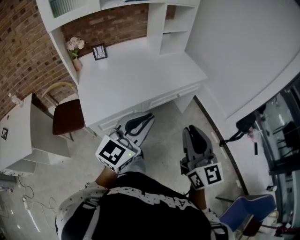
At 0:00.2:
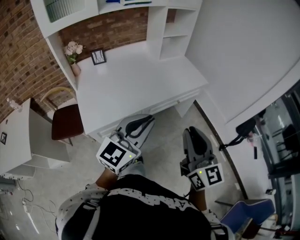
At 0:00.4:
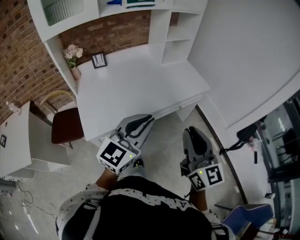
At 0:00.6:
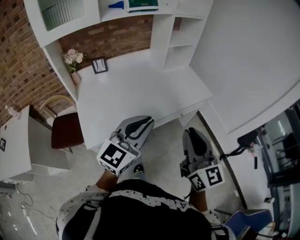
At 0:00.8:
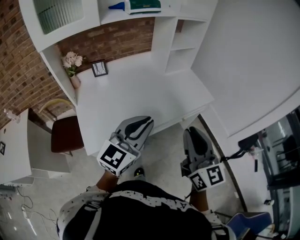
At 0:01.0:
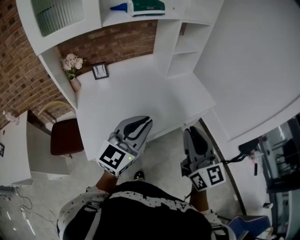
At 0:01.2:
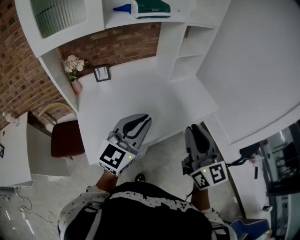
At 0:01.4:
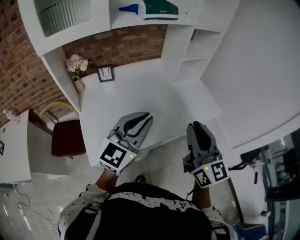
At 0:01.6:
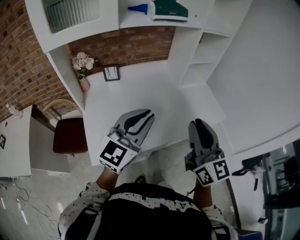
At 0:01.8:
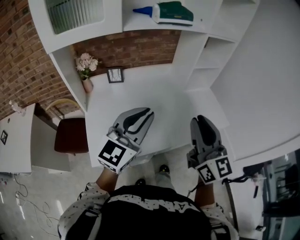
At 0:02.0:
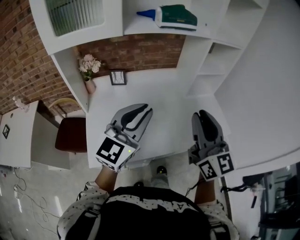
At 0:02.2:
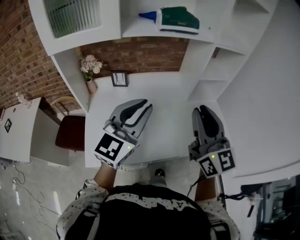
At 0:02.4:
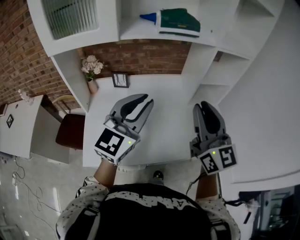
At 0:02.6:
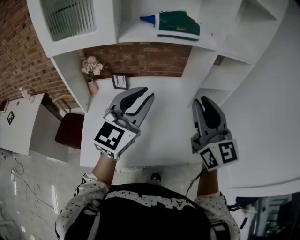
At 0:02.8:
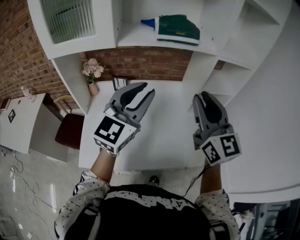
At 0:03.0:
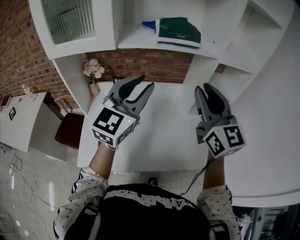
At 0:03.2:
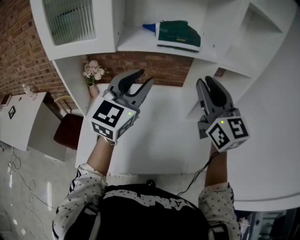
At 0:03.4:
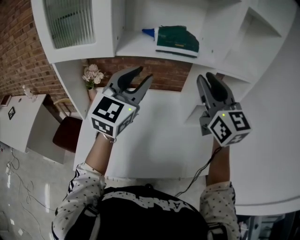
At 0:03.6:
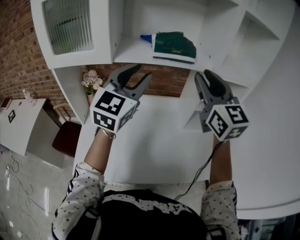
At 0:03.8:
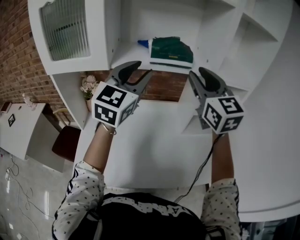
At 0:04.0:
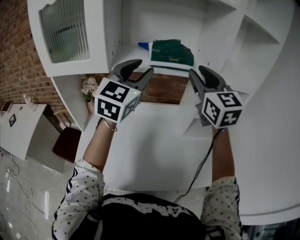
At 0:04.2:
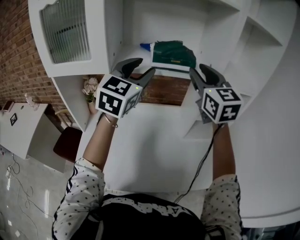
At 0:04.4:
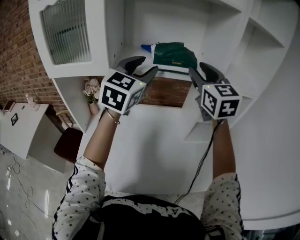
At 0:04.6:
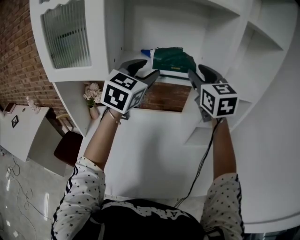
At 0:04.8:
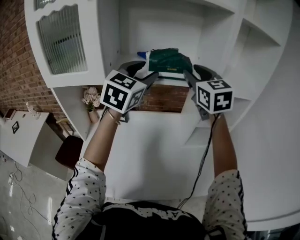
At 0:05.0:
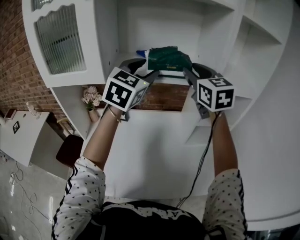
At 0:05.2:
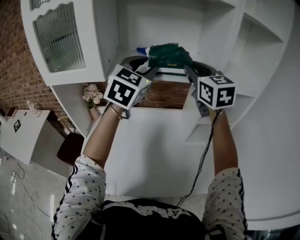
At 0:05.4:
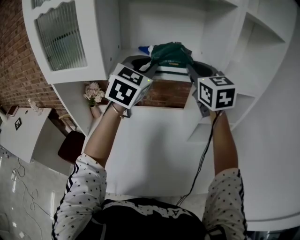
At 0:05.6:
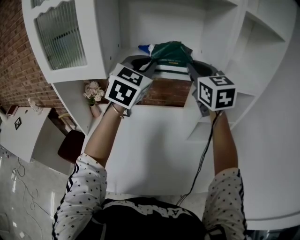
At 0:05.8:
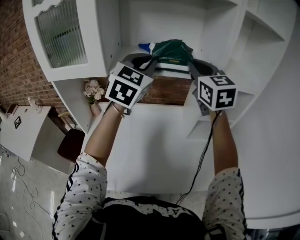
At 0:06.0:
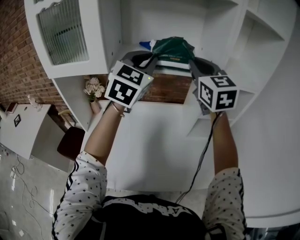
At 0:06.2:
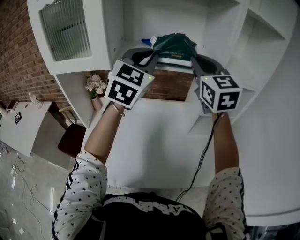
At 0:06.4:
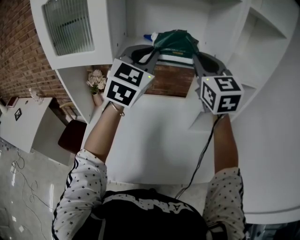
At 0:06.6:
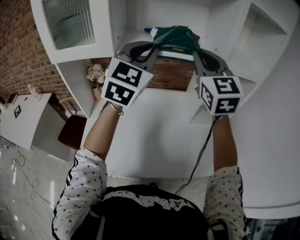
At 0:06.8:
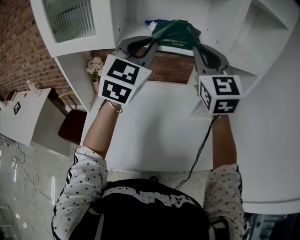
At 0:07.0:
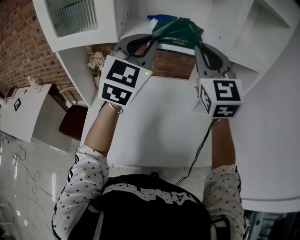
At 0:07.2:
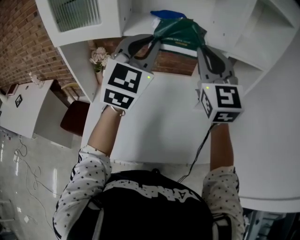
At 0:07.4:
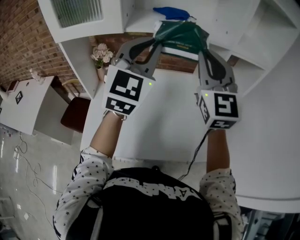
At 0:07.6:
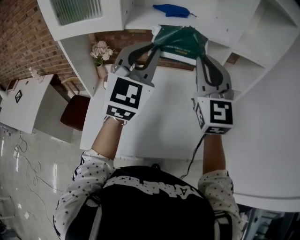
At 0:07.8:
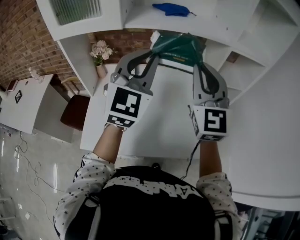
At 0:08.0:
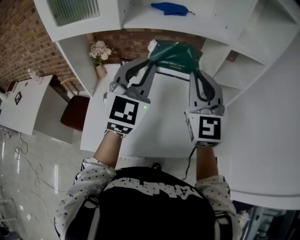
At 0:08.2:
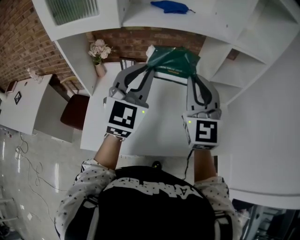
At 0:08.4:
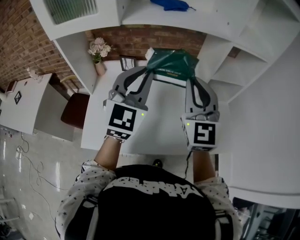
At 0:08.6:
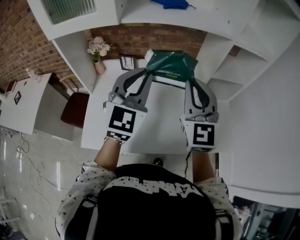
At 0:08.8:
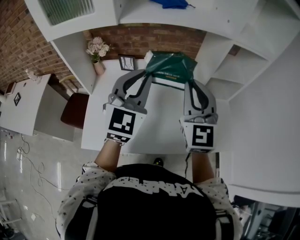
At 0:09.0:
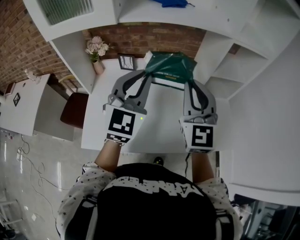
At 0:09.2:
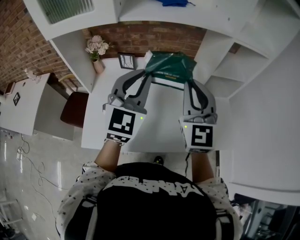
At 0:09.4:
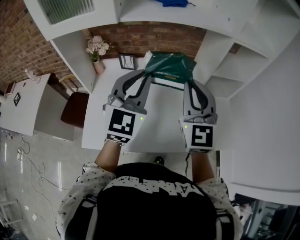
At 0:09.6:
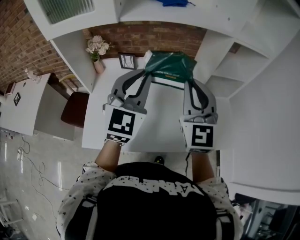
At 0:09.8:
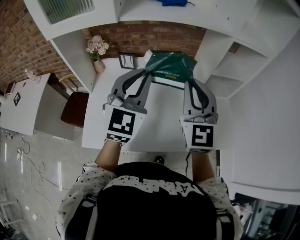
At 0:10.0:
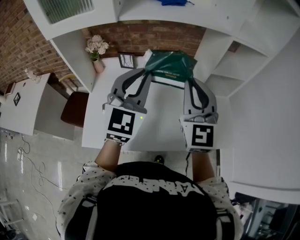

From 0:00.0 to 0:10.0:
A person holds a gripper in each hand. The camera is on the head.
From 0:00.0 to 0:01.4: The grippers both shift forward and to the left by some 25 cm.
From 0:01.4 to 0:02.8: The grippers both shift forward and upward by some 20 cm. The right gripper swivels about 20 degrees. Meanwhile the left gripper changes its angle by about 20 degrees.
From 0:02.8 to 0:04.2: Both grippers move forward and upward, approximately 20 cm. The left gripper opens up.
From 0:04.2 to 0:05.8: The left gripper closes, while the right gripper closes.
From 0:05.8 to 0:07.2: The two grippers go roughly 10 cm backward.
From 0:07.2 to 0:08.6: The two grippers go roughly 15 cm downward and backward.
From 0:08.6 to 0:10.0: Both grippers stay about where they are.

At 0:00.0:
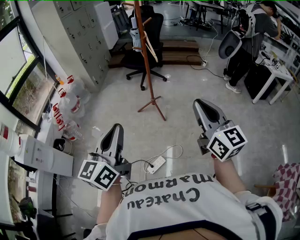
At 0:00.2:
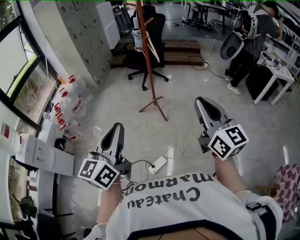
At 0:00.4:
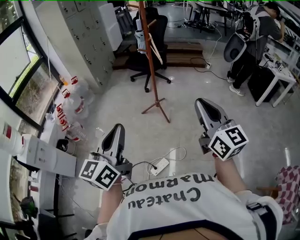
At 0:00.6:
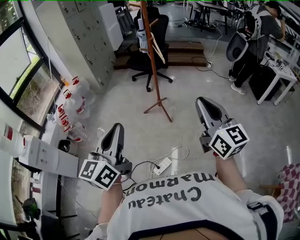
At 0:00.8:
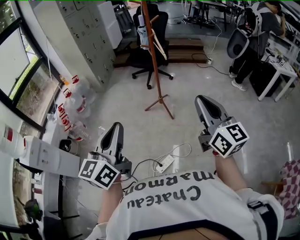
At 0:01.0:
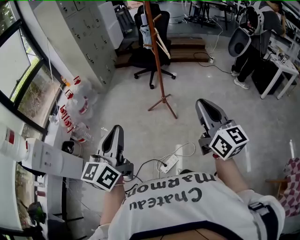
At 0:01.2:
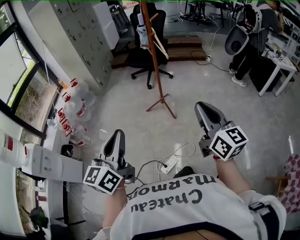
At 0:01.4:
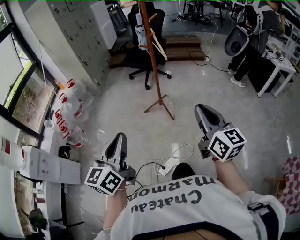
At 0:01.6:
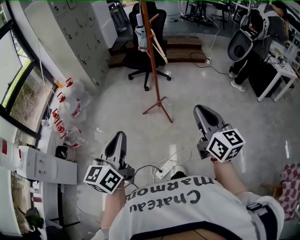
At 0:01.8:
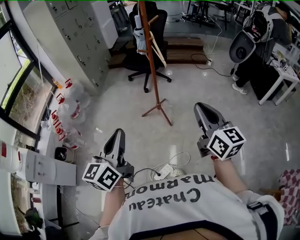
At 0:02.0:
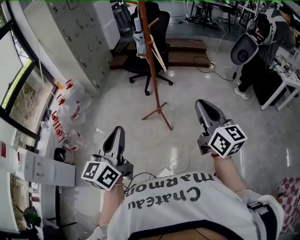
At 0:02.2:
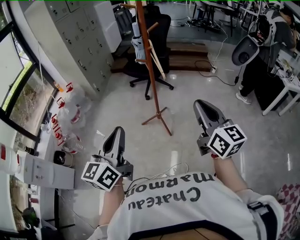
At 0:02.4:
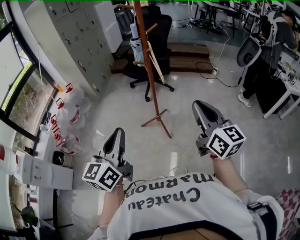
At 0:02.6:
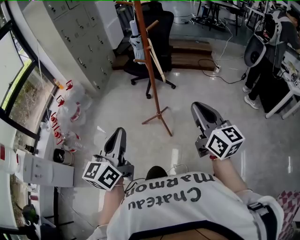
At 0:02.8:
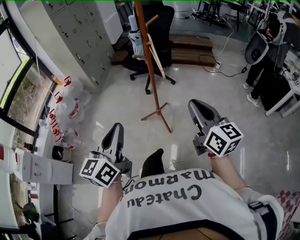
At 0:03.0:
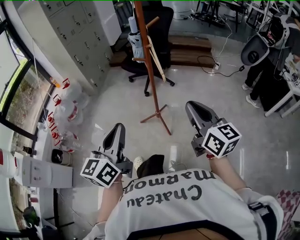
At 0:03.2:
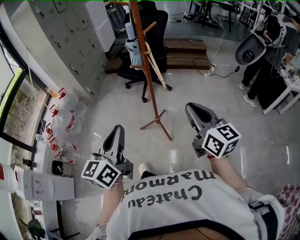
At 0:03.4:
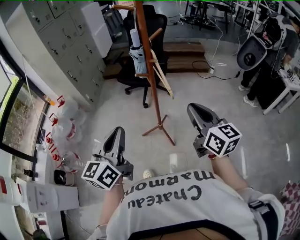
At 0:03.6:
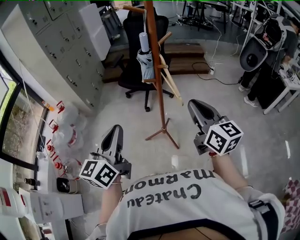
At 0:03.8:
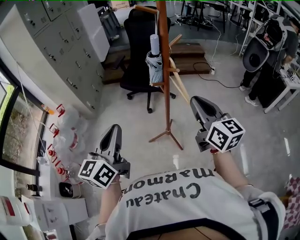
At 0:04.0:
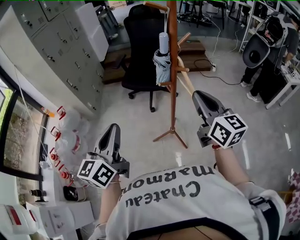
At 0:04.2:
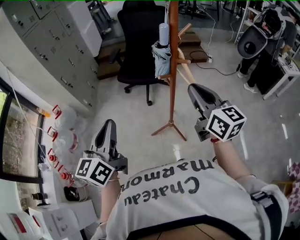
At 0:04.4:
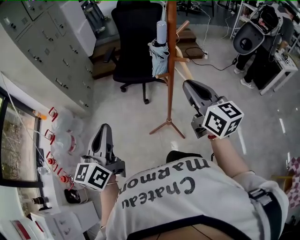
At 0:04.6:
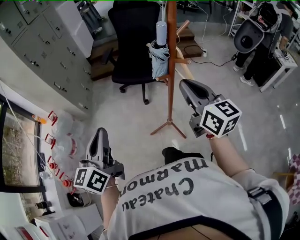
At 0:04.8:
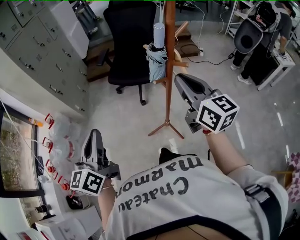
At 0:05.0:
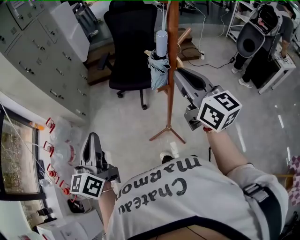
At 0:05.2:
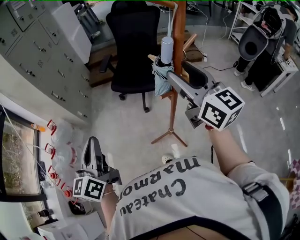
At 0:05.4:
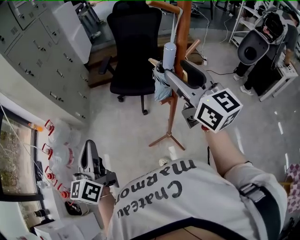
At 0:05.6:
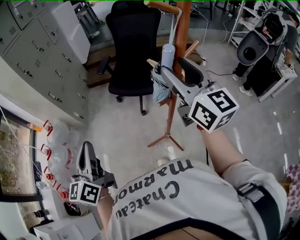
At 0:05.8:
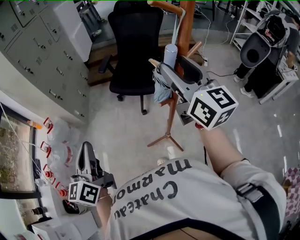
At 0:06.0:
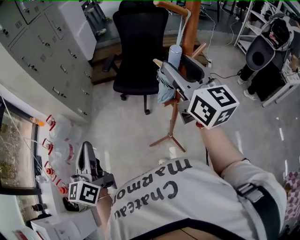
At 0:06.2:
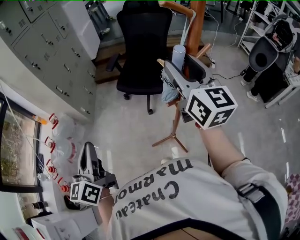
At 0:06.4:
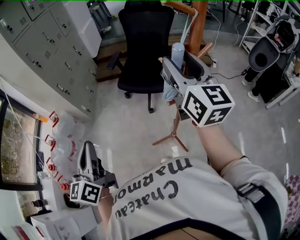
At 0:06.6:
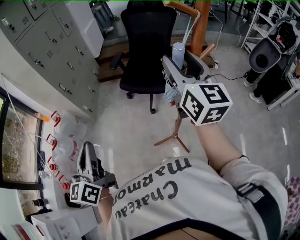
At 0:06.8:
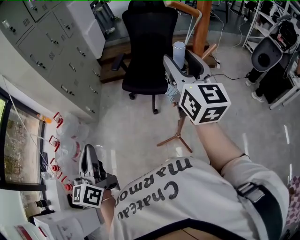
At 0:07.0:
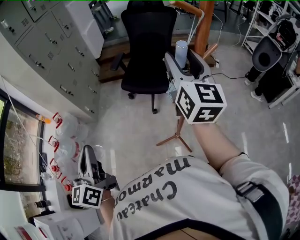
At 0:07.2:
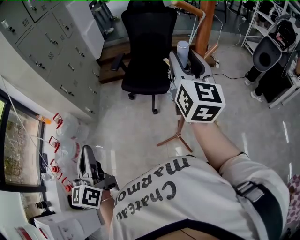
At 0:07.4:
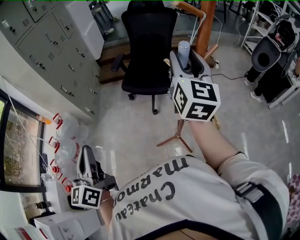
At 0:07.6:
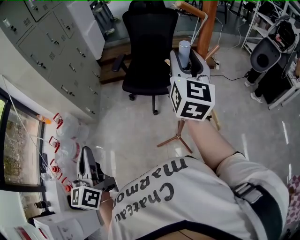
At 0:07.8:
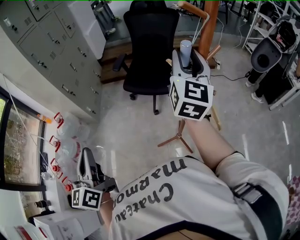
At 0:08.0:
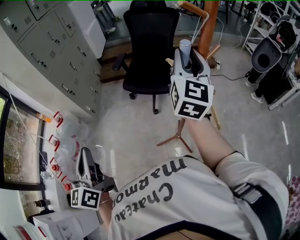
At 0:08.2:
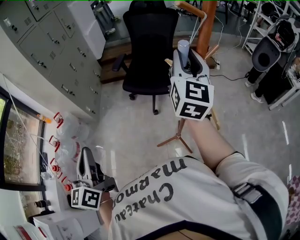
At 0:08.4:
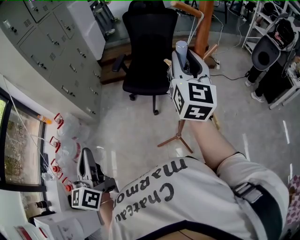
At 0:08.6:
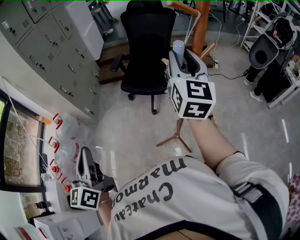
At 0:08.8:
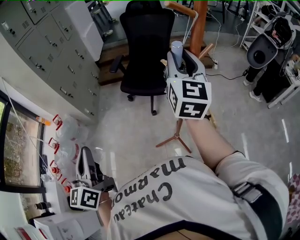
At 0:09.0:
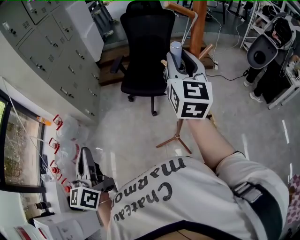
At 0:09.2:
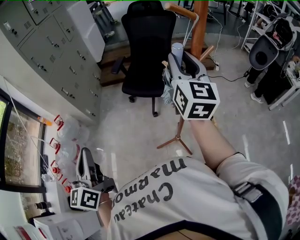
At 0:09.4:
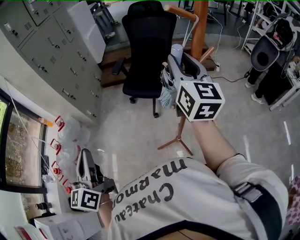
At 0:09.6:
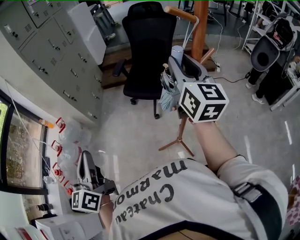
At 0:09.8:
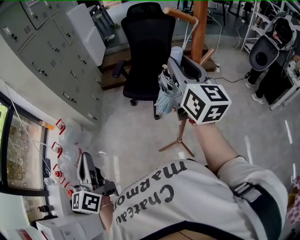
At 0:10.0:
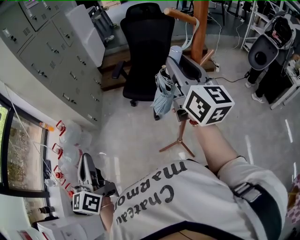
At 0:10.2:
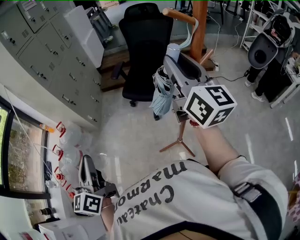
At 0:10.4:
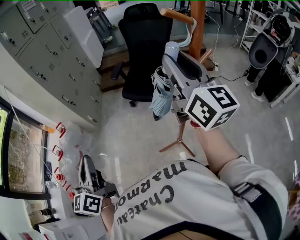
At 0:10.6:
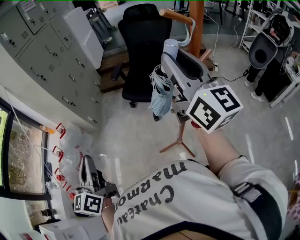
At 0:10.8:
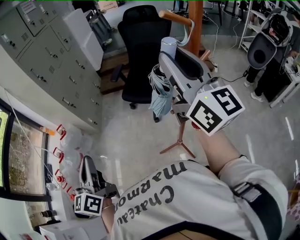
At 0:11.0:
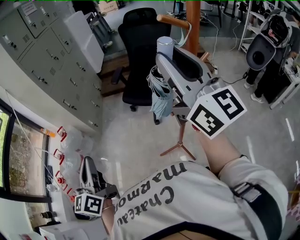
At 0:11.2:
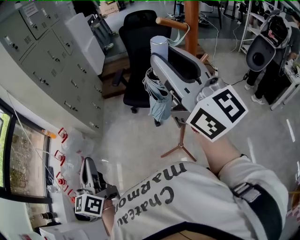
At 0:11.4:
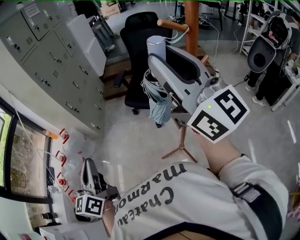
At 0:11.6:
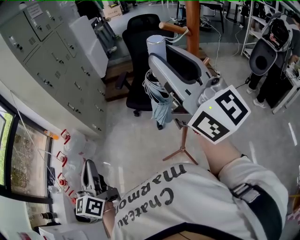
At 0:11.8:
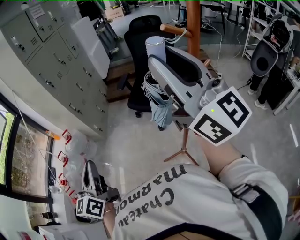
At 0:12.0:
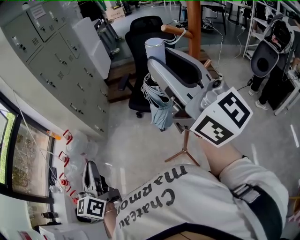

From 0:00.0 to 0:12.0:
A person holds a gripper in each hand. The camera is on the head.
From 0:00.0 to 0:01.6: The left gripper goes roughly 15 cm forward, to the left and downward, while the right gripper goes about 15 cm forward, downward and to the left.
From 0:01.6 to 0:03.0: The grippers both shift forward by roughly 20 cm.
From 0:03.0 to 0:04.4: The left gripper heads to the left and forward, covering roughly 35 cm. Meanwhile the right gripper heads forward and to the left, covering some 30 cm.
From 0:04.4 to 0:06.0: The right gripper travels forward and upward by approximately 20 cm, and opens its fingers. The left gripper heads forward and to the left, covering roughly 10 cm.
From 0:06.0 to 0:07.6: The left gripper heads to the left, covering approximately 5 cm. Meanwhile the right gripper turns by some 30 degrees.
From 0:07.6 to 0:09.0: The grippers move only a little.
From 0:09.0 to 0:10.4: The right gripper moves approximately 5 cm, and swivels roughly 30 degrees.
From 0:10.4 to 0:12.0: The right gripper goes about 15 cm upward, backward and to the left, and rotates approximately 20 degrees.

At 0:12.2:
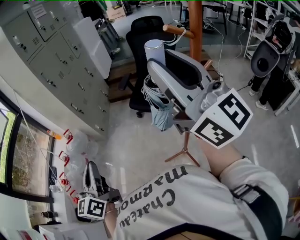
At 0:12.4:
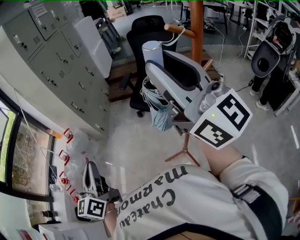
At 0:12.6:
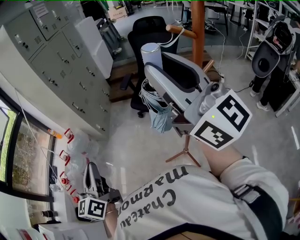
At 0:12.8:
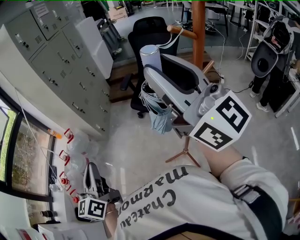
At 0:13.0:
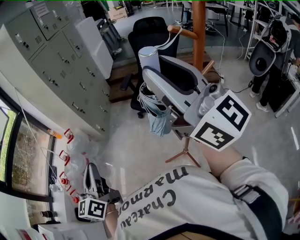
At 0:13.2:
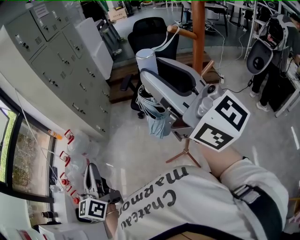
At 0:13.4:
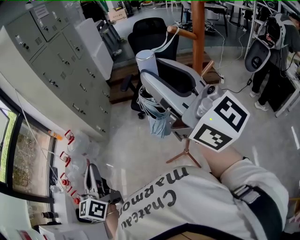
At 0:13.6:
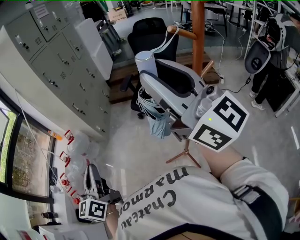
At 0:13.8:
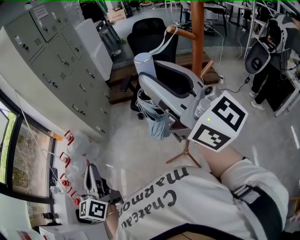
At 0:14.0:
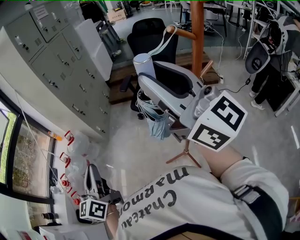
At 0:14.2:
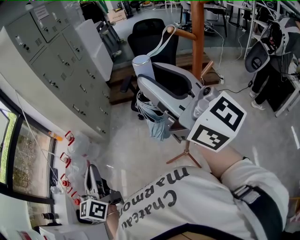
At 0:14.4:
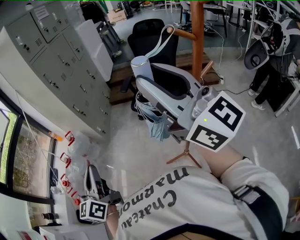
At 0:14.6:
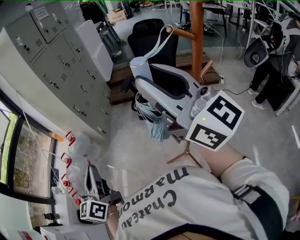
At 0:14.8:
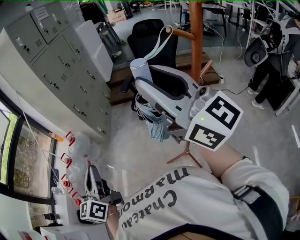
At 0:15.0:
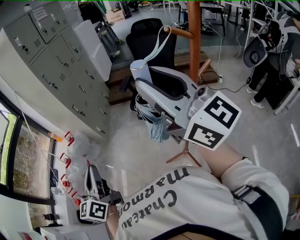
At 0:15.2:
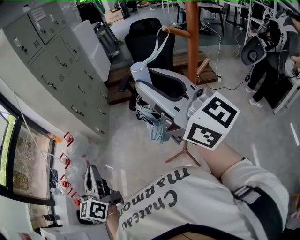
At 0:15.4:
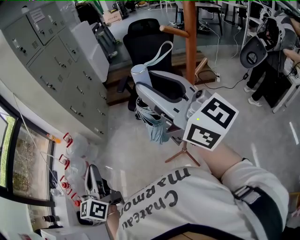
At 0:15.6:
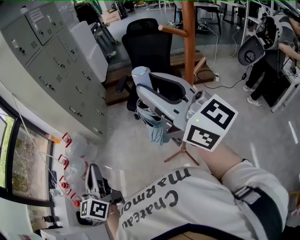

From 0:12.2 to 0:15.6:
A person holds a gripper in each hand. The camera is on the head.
From 0:12.2 to 0:15.6: The grippers move only a little.
